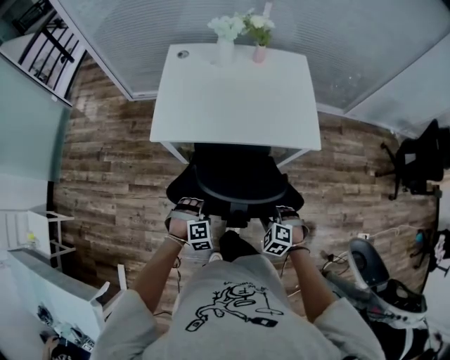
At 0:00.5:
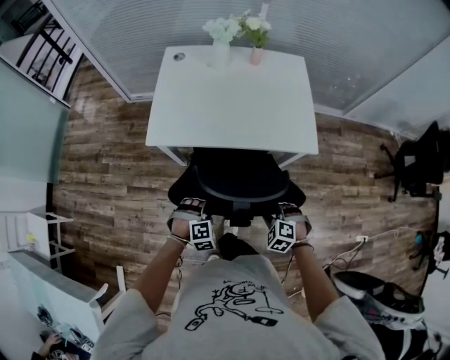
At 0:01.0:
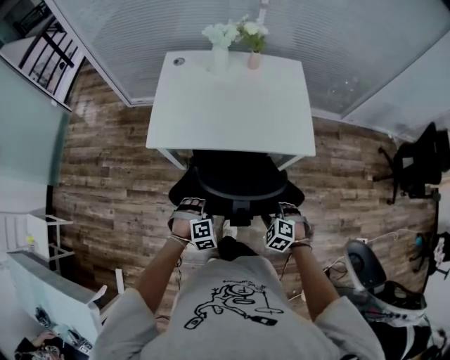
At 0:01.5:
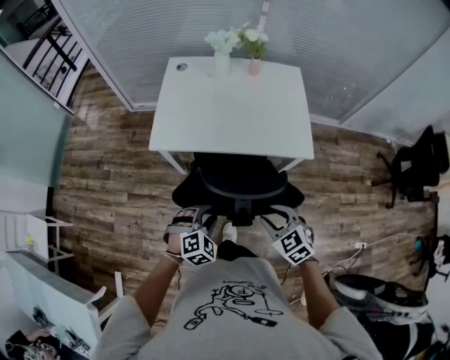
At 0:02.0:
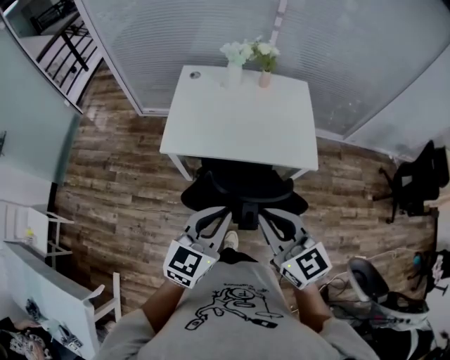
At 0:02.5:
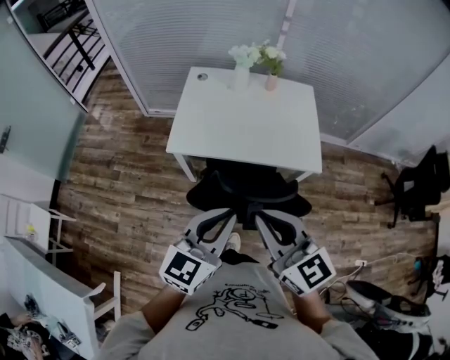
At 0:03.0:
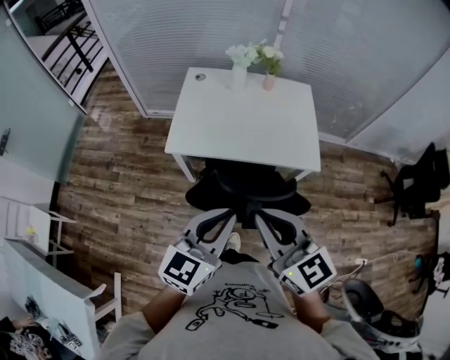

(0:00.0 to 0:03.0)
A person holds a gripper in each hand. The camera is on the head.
0:00.0 - 0:01.5: The two grippers go approximately 10 cm upward. The right gripper rotates about 30 degrees. Meanwhile the left gripper swivels about 20 degrees.
0:01.5 - 0:03.0: The right gripper heads upward and to the left, covering roughly 25 cm, tilts its fingers approximately 30 degrees upward, and closes its fingers, while the left gripper shifts approximately 25 cm upward, tilts its fingers about 40 degrees upward, and closes up.

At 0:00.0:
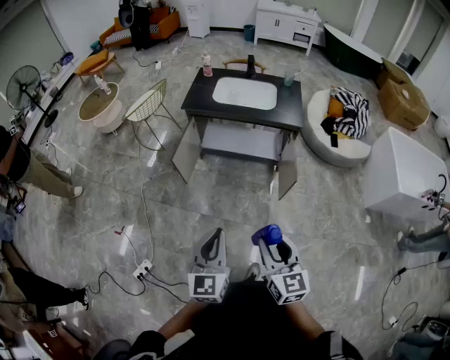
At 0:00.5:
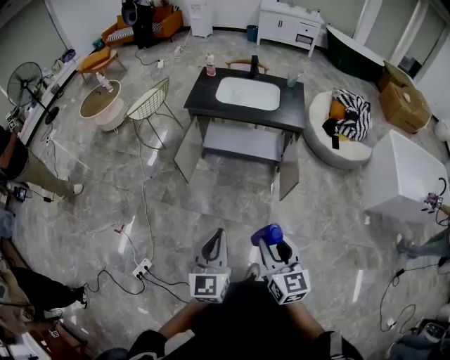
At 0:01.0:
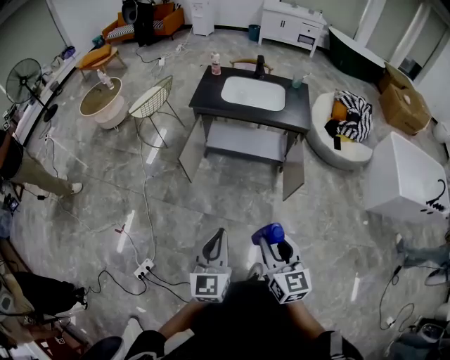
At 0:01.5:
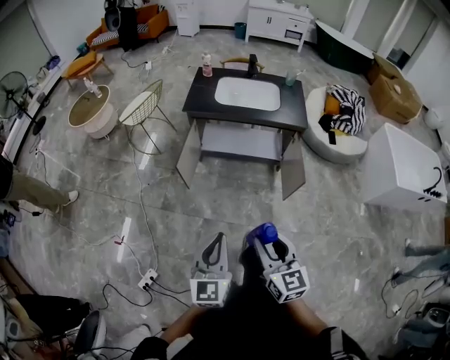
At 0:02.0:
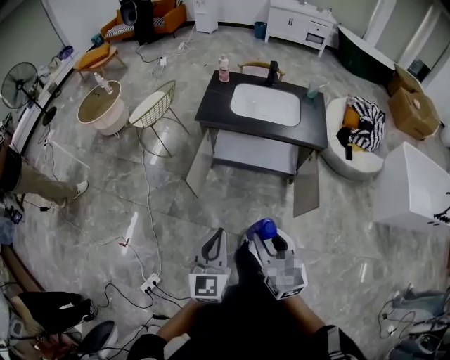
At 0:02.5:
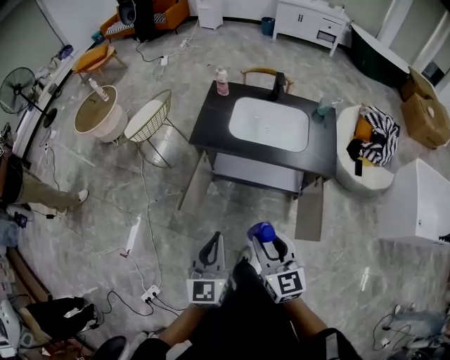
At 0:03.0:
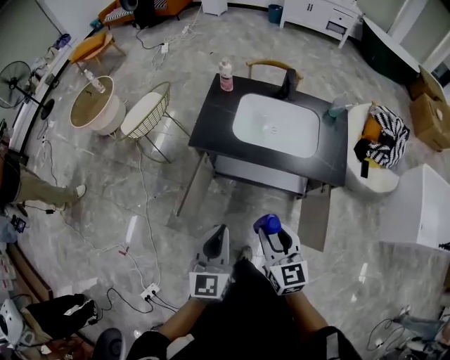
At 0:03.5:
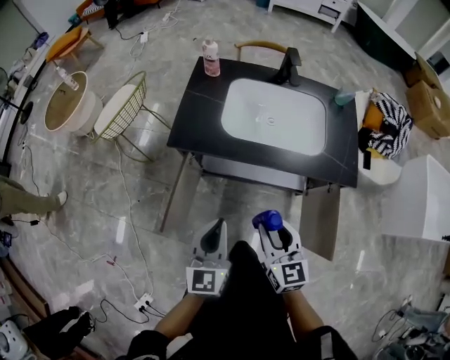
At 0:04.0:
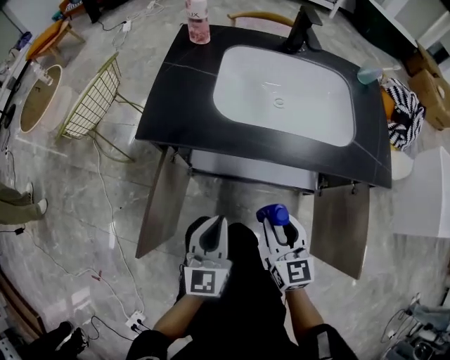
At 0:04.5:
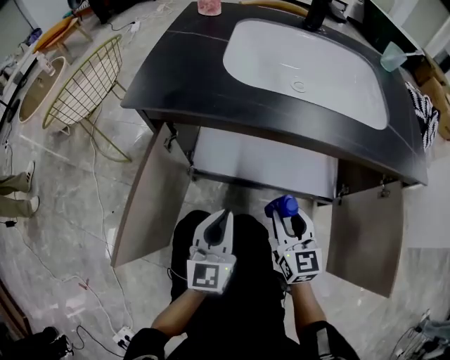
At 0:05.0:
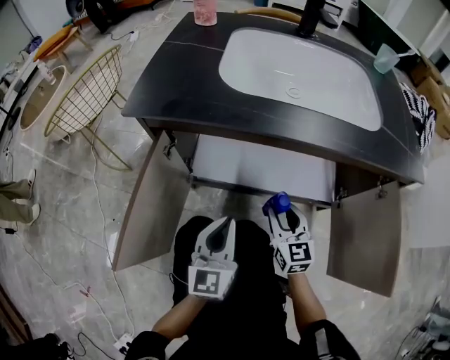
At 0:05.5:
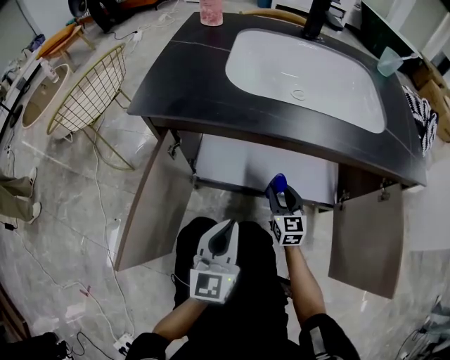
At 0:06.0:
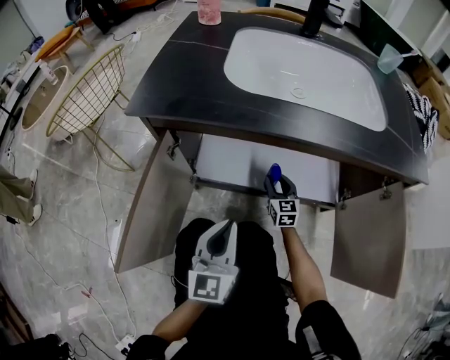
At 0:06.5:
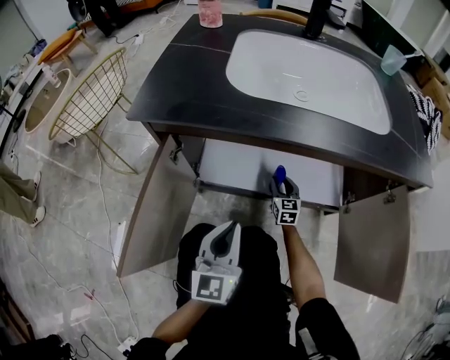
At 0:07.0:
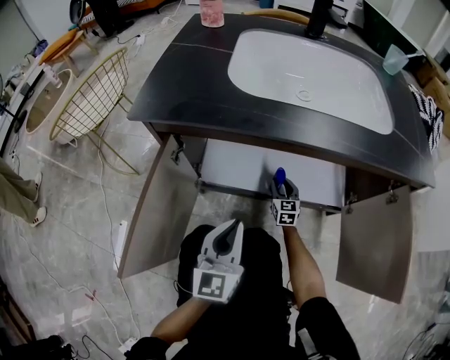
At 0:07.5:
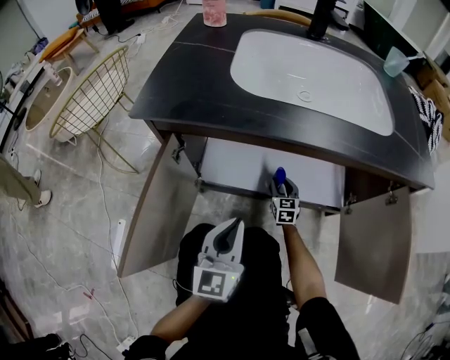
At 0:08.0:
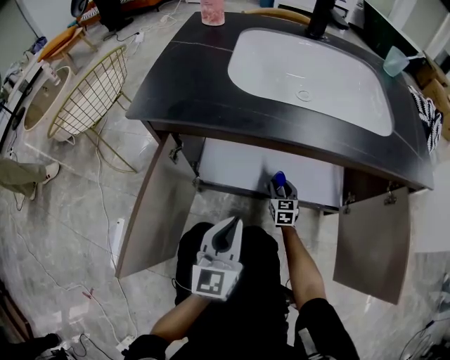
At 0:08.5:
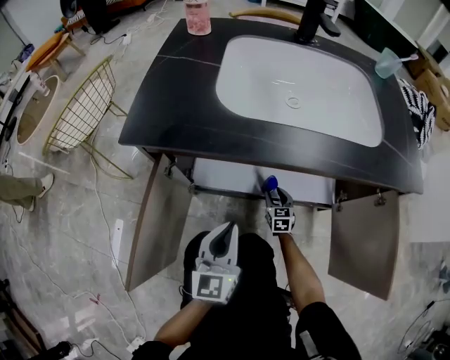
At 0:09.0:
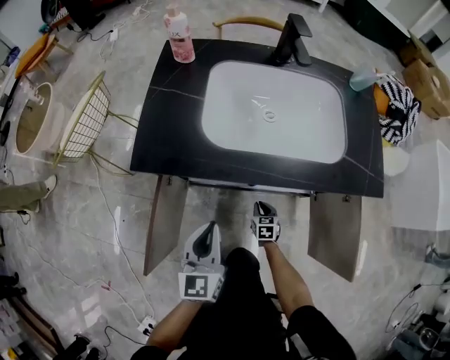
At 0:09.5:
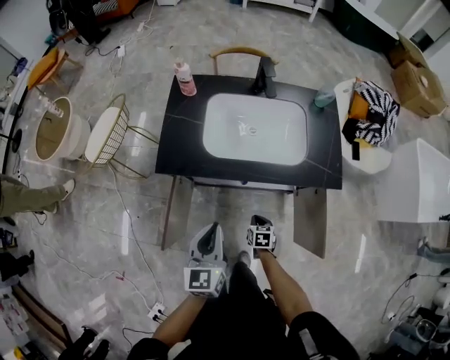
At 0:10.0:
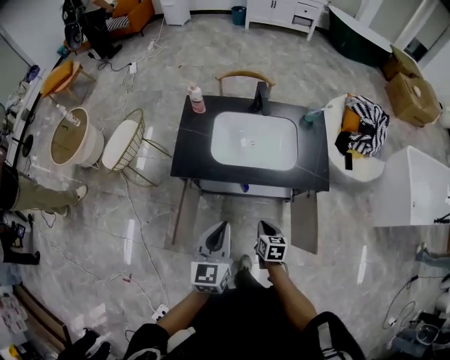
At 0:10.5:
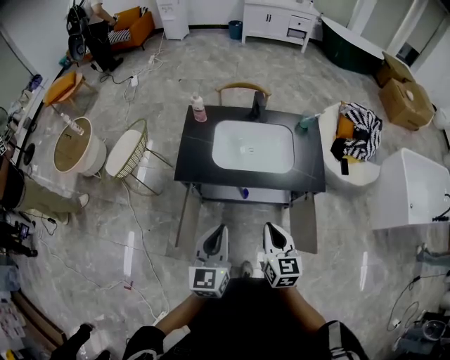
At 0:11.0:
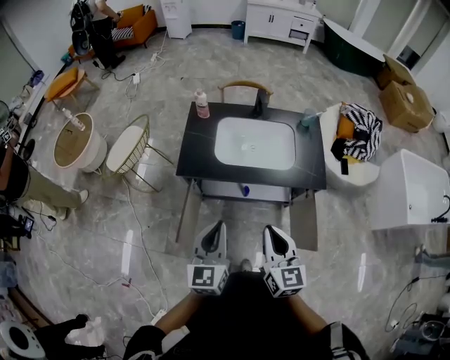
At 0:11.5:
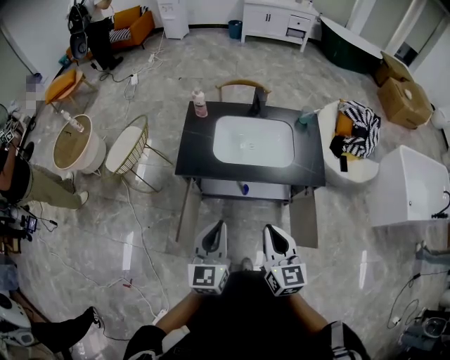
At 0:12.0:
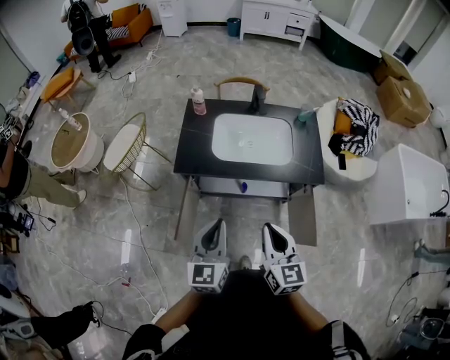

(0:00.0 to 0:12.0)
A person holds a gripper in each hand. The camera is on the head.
0:00.0 - 0:02.0: Both grippers move forward and to the left, some 20 cm.
0:02.0 - 0:04.0: Both grippers are carried forward, approximately 40 cm. Both grippers move downward, approximately 40 cm.
0:04.0 - 0:06.0: The right gripper is displaced downward and forward by approximately 40 cm; the left gripper travels downward by some 15 cm.
0:06.0 - 0:08.0: The right gripper travels downward by approximately 5 cm.
0:08.0 - 0:10.0: The left gripper shifts approximately 50 cm upward, while the right gripper shifts some 60 cm upward and backward, turns by some 30 degrees, and closes its fingers.
0:10.0 - 0:12.0: The left gripper goes about 5 cm backward. Meanwhile the right gripper is displaced upward by roughly 25 cm, and points its fingers roughly 30 degrees further upward.

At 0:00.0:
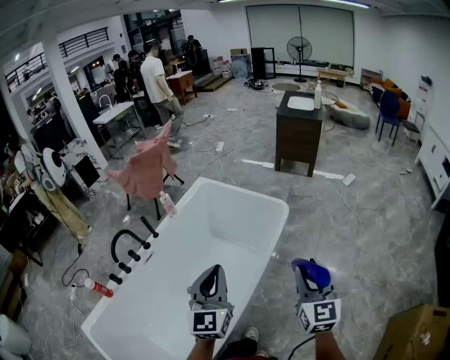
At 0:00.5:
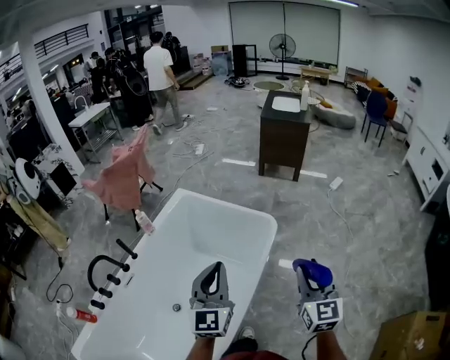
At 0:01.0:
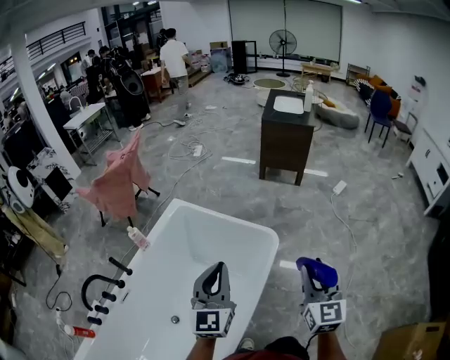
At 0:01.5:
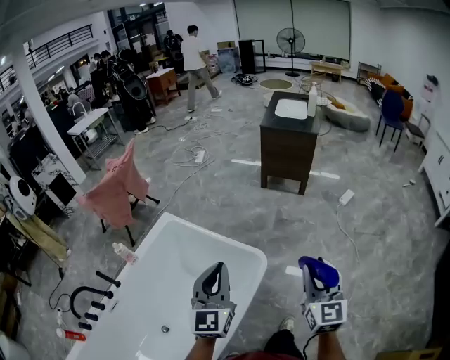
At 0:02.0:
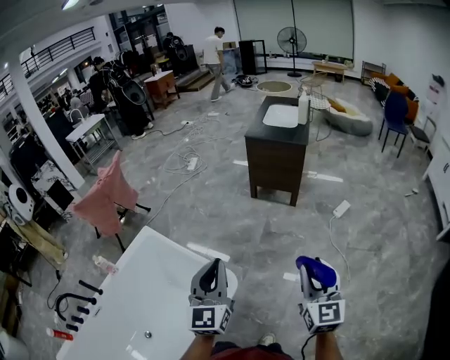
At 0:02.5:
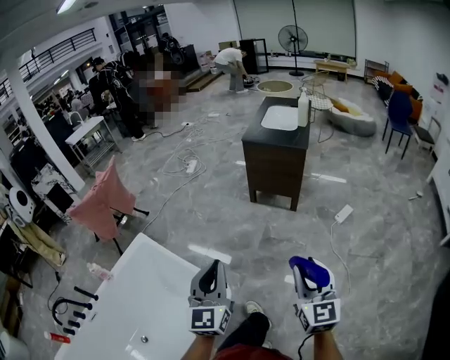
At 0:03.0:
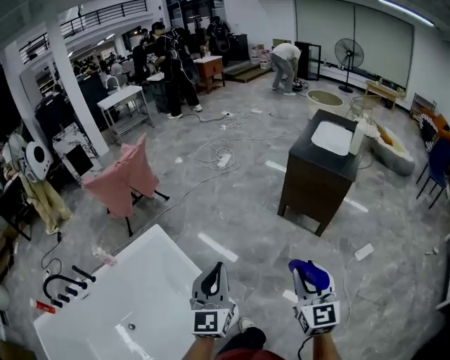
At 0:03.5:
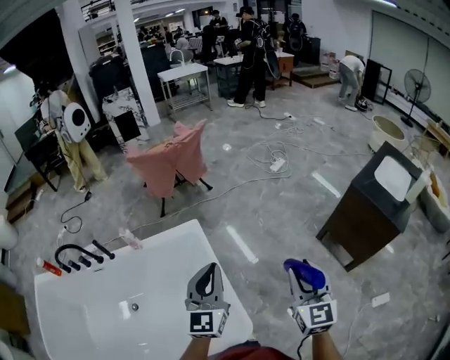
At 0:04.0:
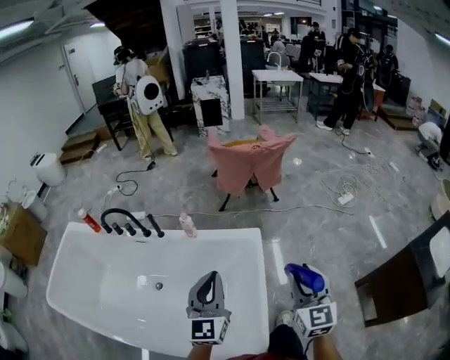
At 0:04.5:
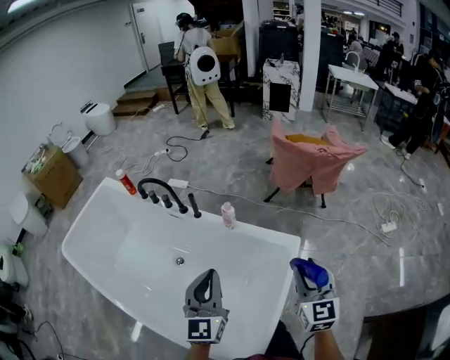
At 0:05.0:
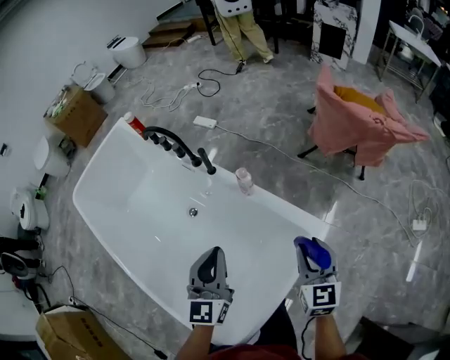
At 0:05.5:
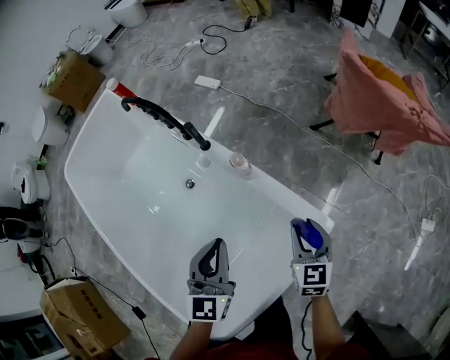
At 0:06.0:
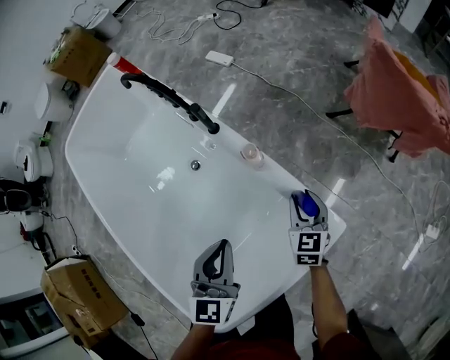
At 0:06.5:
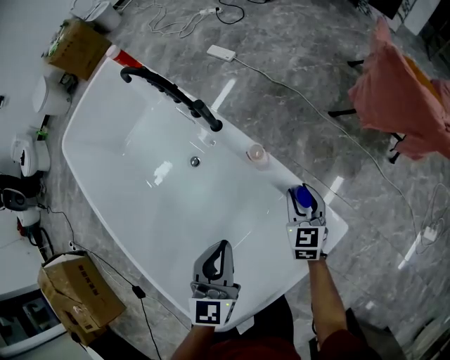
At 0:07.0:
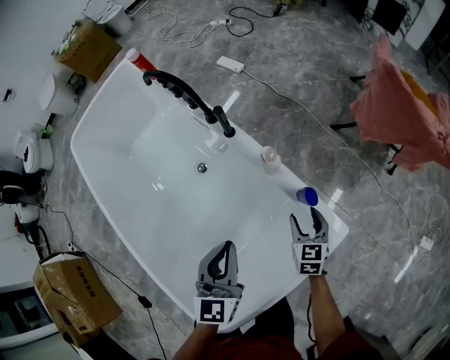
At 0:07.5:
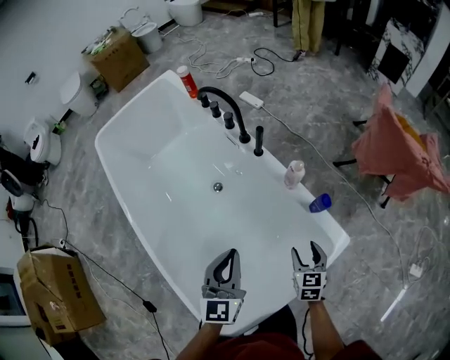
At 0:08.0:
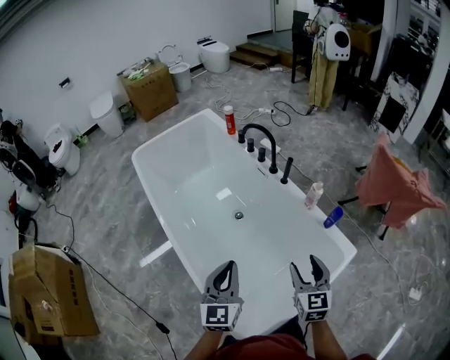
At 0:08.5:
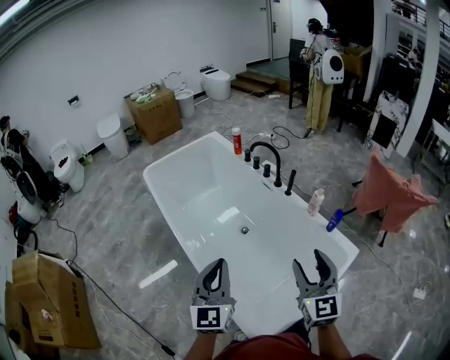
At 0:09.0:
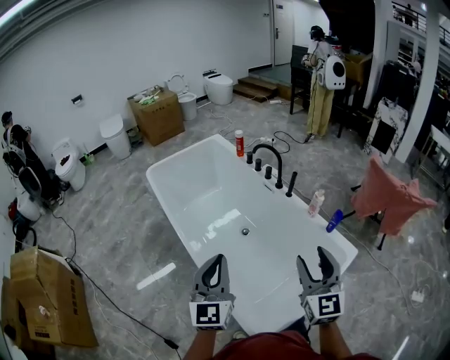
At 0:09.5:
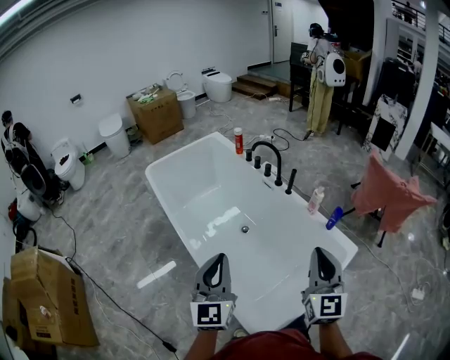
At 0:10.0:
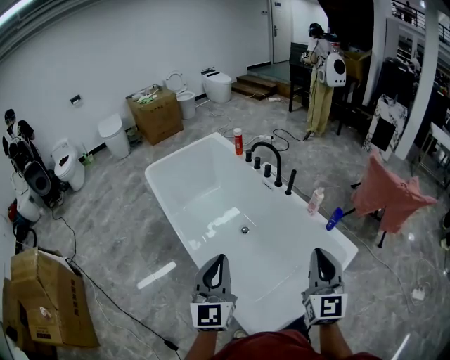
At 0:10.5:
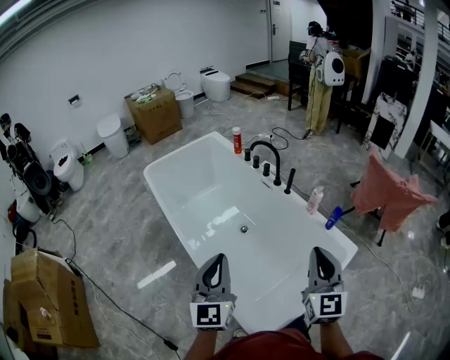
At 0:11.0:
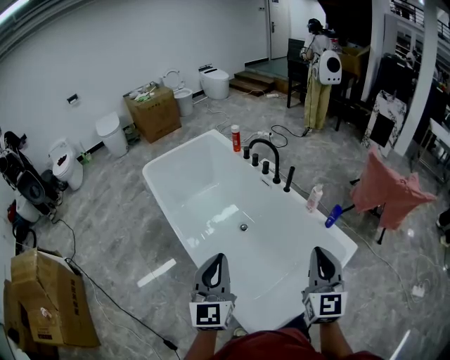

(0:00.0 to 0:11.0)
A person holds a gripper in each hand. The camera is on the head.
0:00.0 - 0:02.0: Both grippers are carried forward and to the right, about 70 cm.
0:02.0 - 0:03.5: The left gripper moves approximately 35 cm, and changes its angle by about 40 degrees. Meanwhile the right gripper moves about 50 cm, and changes its angle by approximately 40 degrees.
0:03.5 - 0:05.5: The left gripper ends up roughly 50 cm from where it was, and swivels approximately 60 degrees. Meanwhile the right gripper shifts by approximately 70 cm, and turns by some 70 degrees.
0:05.5 - 0:07.5: The two grippers go some 15 cm to the left and backward. The right gripper opens.
0:07.5 - 0:09.0: The right gripper shifts some 50 cm upward, to the left and backward, and points its fingers roughly 40 degrees further upward, while the left gripper travels to the left, backward and upward by some 40 cm.
0:09.0 - 0:11.0: The right gripper closes up.
